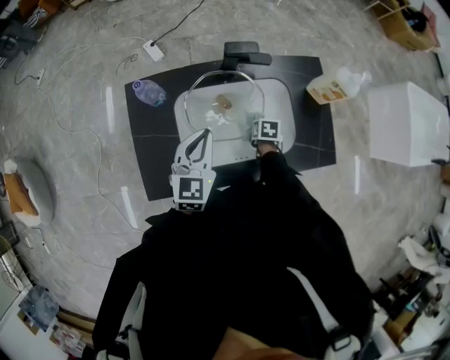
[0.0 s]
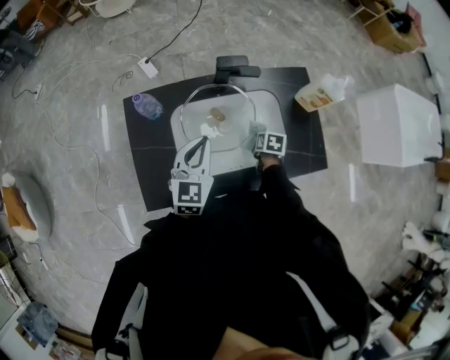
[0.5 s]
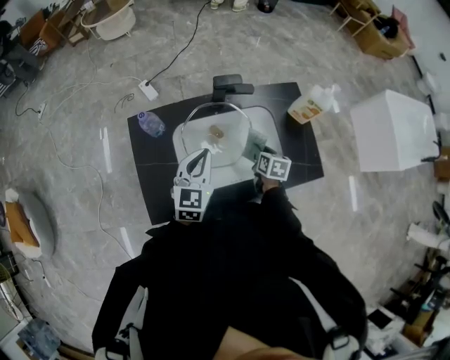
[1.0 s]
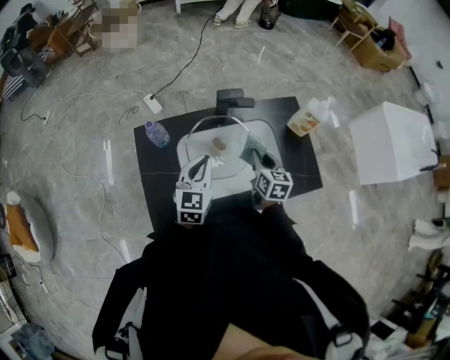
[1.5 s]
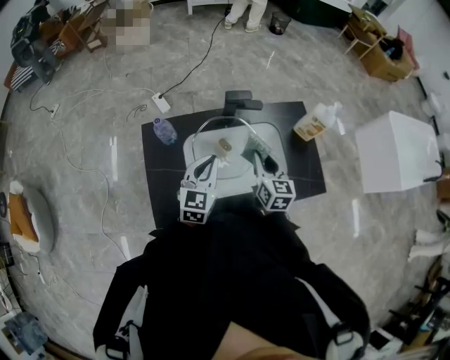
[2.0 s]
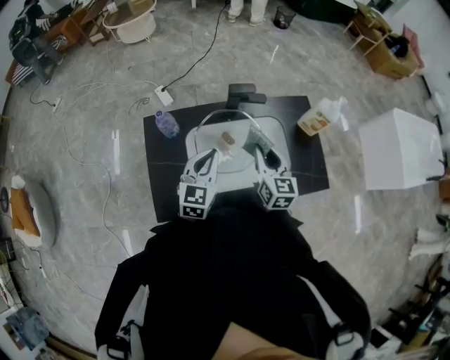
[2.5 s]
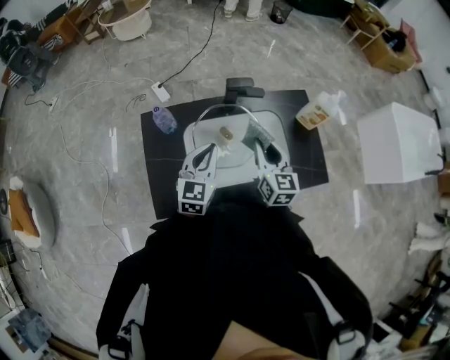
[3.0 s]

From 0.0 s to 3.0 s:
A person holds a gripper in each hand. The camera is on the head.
From 0.0 s to 1.5 s: The right gripper travels upward by about 20 cm, and tilts its fingers approximately 40 degrees upward.
From 1.5 s to 3.0 s: The right gripper moves upward, roughly 10 cm.

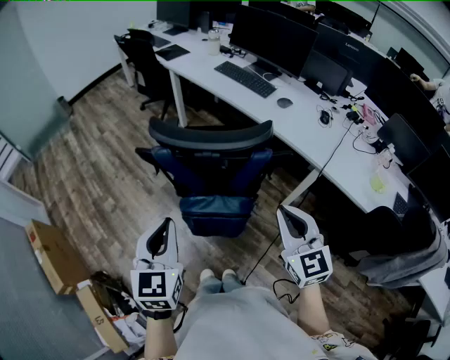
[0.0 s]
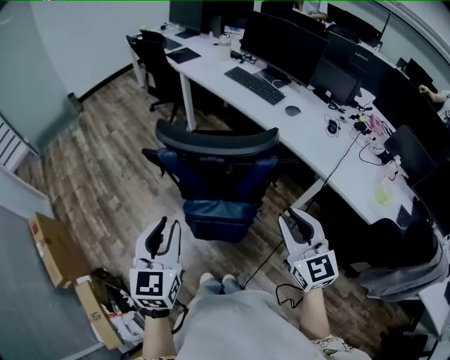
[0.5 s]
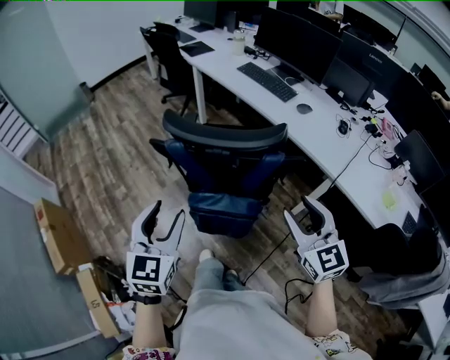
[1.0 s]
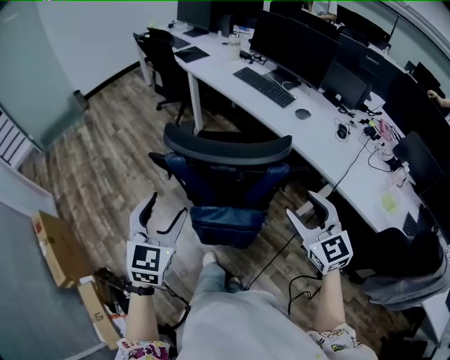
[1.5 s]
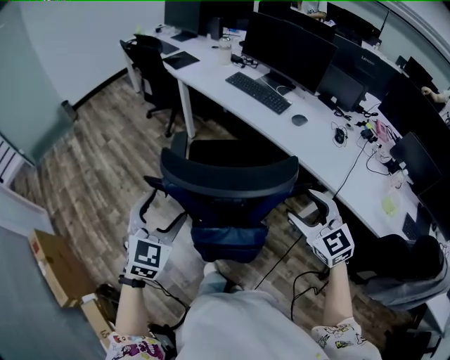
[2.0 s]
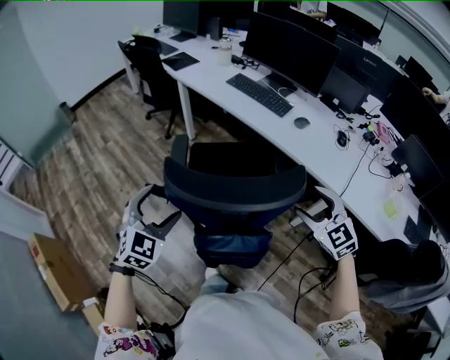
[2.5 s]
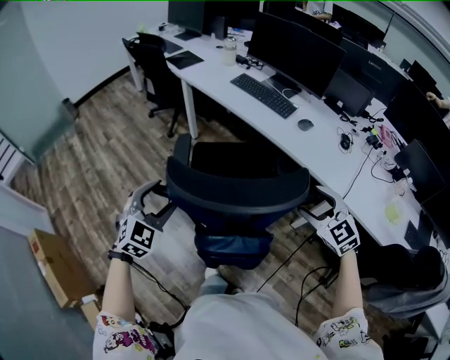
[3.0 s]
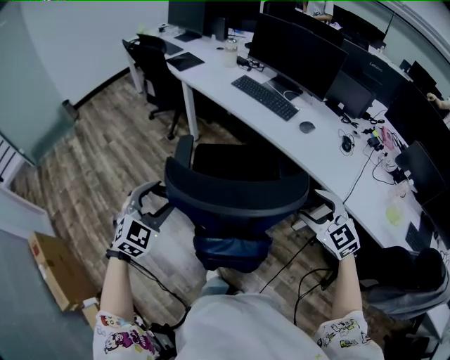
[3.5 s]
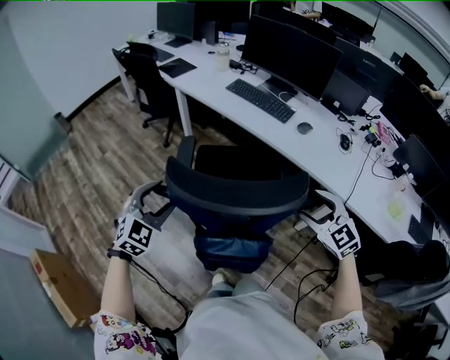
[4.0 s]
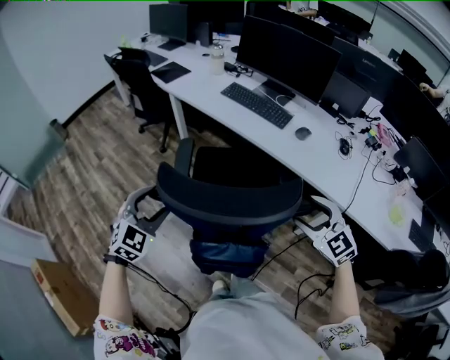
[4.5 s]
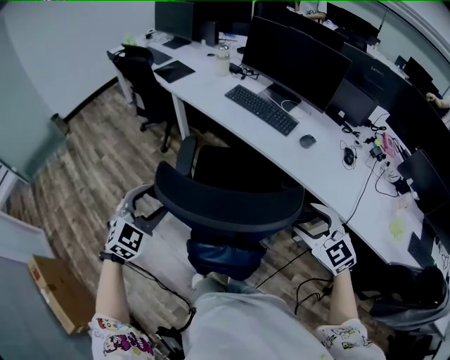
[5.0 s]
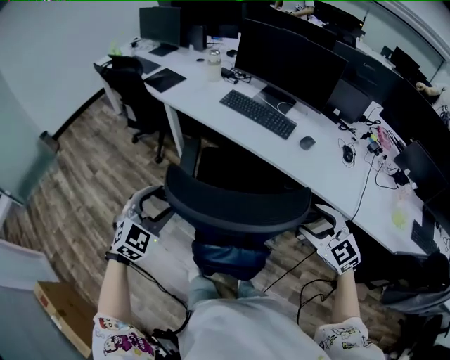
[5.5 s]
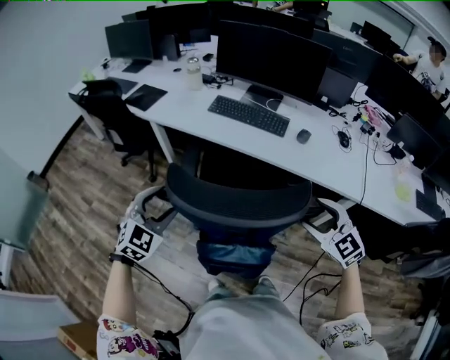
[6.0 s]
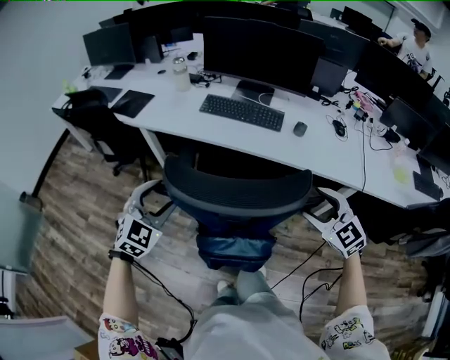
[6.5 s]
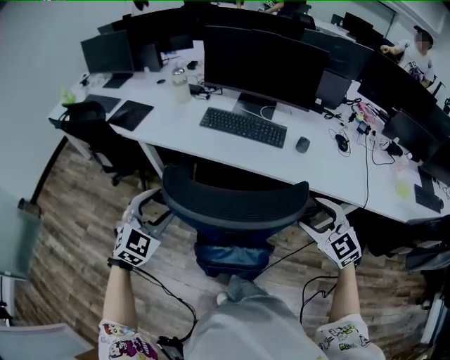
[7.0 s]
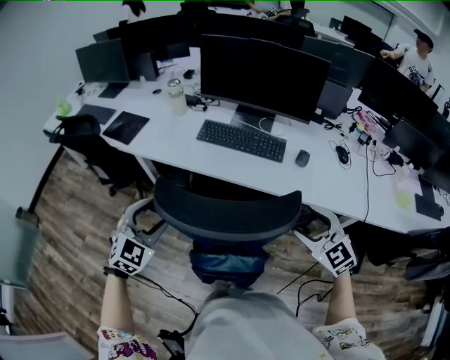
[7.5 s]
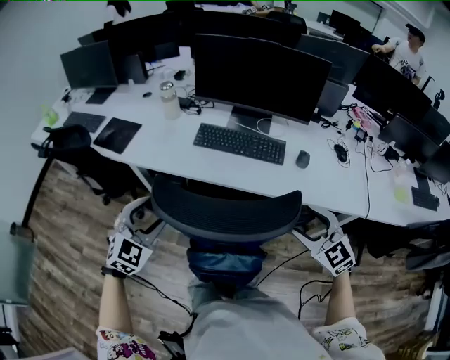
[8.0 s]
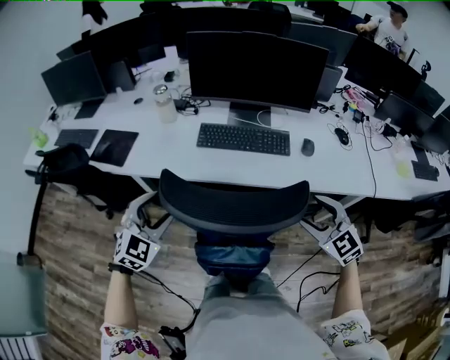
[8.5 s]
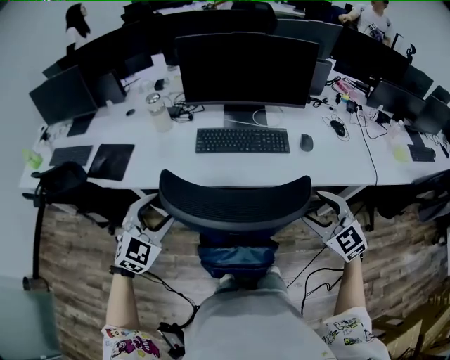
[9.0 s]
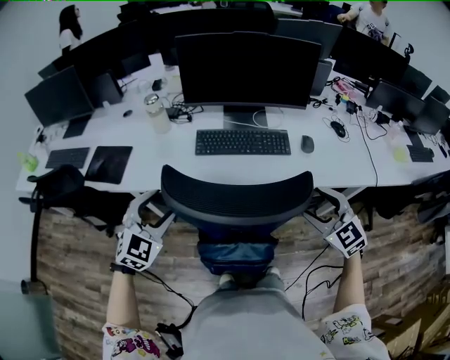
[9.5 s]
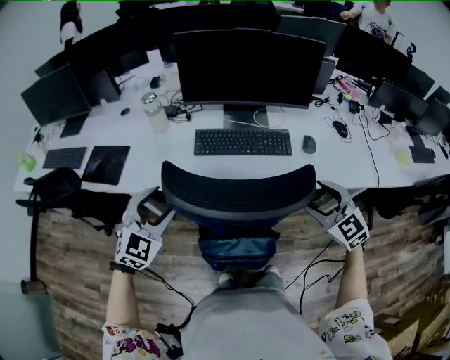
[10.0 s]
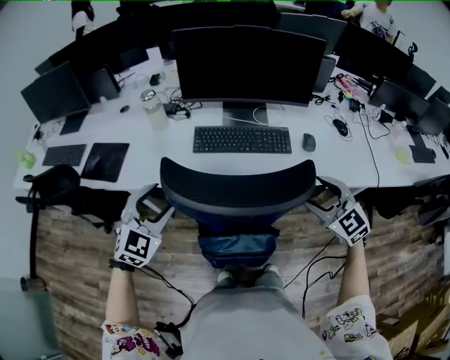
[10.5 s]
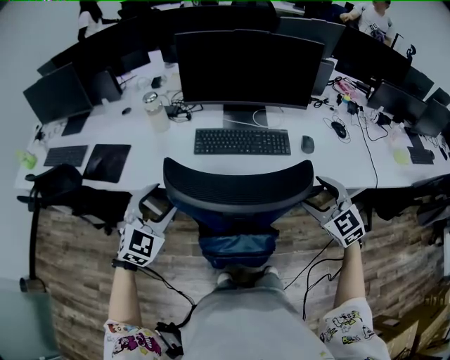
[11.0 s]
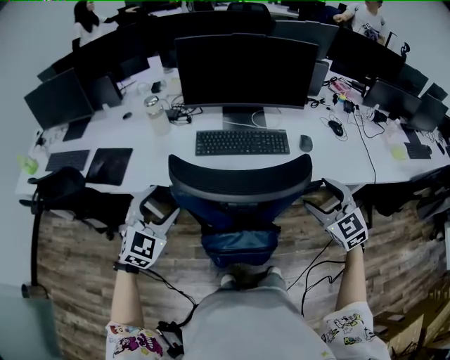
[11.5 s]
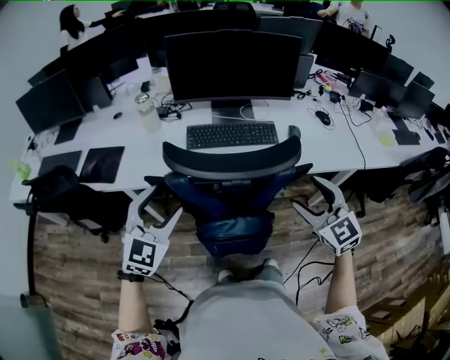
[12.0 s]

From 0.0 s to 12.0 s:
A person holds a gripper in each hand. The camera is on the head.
From 0.0 s to 2.0 s: Both grippers move forward, roughly 15 cm. The left gripper changes its angle by about 30 degrees, and opens its fingers, while the right gripper opens.
From 2.0 s to 4.0 s: The right gripper is displaced forward by approximately 5 cm; the left gripper shifts approximately 15 cm forward and to the left, and turns by about 20 degrees.
From 4.0 s to 6.0 s: The left gripper travels forward by roughly 20 cm. The right gripper goes roughly 10 cm forward and to the left.
From 6.0 s to 8.0 s: The left gripper shifts some 20 cm forward, while the right gripper travels forward and to the left by some 15 cm.
From 8.0 s to 10.0 s: The right gripper heads forward and to the left, covering some 10 cm. Meanwhile the left gripper travels forward by about 10 cm.
From 10.0 s to 12.0 s: The grippers both shift backward by approximately 5 cm.

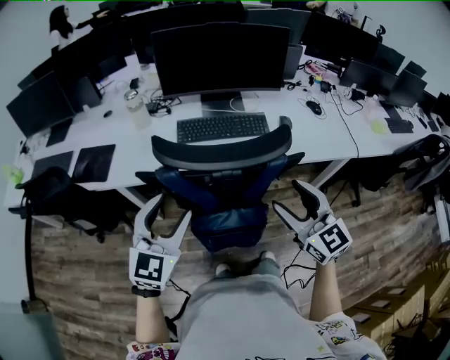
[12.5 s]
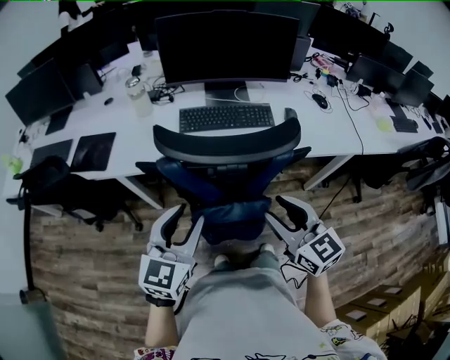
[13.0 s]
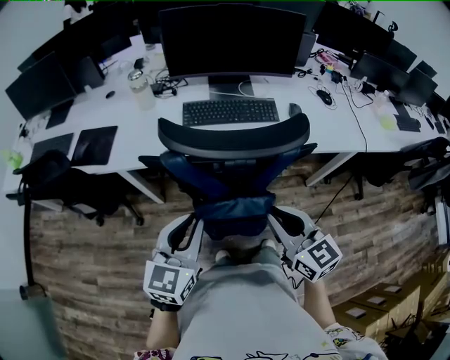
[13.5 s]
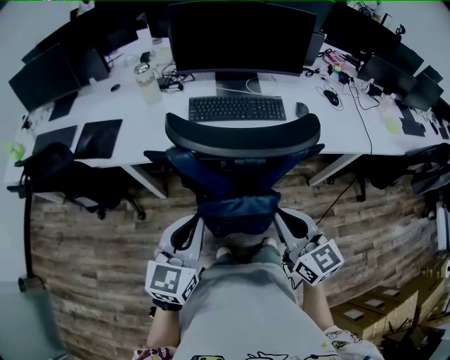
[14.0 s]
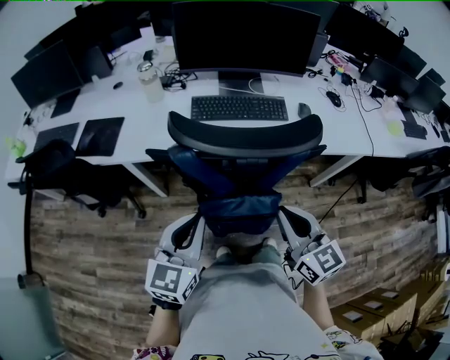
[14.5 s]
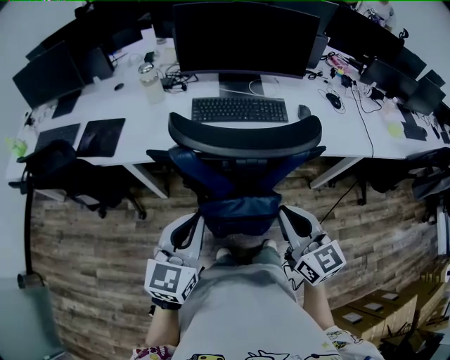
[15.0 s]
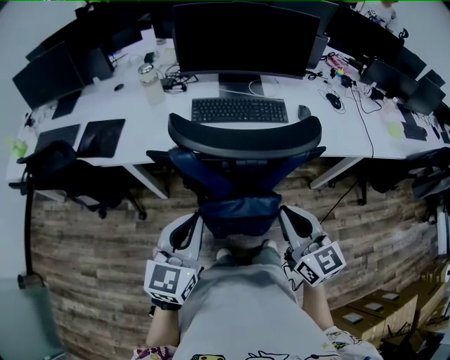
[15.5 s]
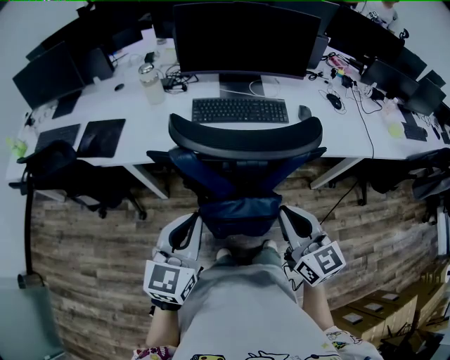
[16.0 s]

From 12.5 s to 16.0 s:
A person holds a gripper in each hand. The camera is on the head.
From 12.5 s to 14.5 s: The right gripper ends up about 10 cm from where it was, and closes; the left gripper shifts roughly 5 cm backward, turns by about 20 degrees, and closes its fingers.
From 14.5 s to 16.0 s: The two grippers keep their place.

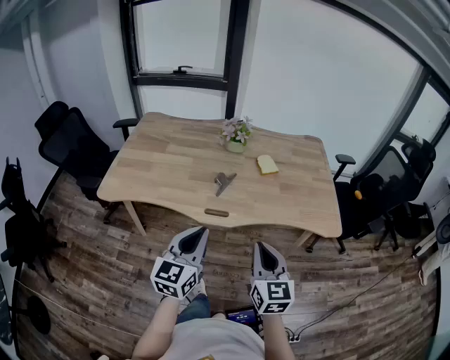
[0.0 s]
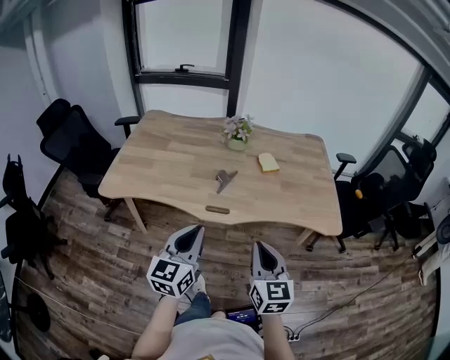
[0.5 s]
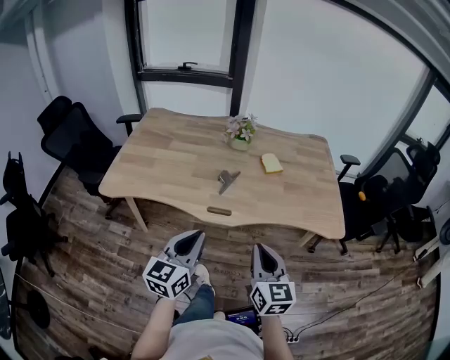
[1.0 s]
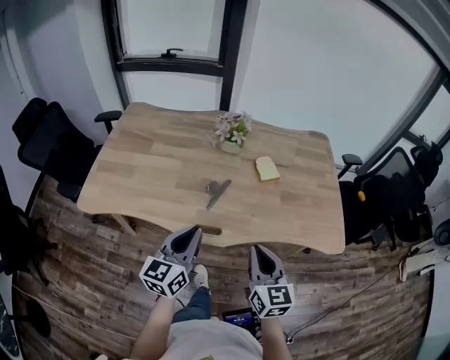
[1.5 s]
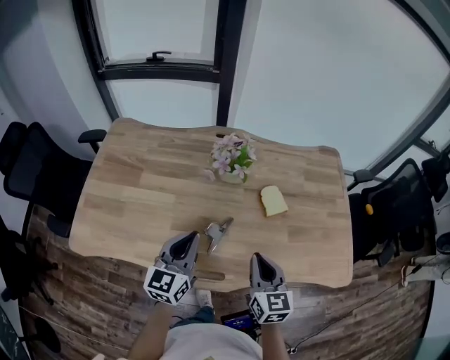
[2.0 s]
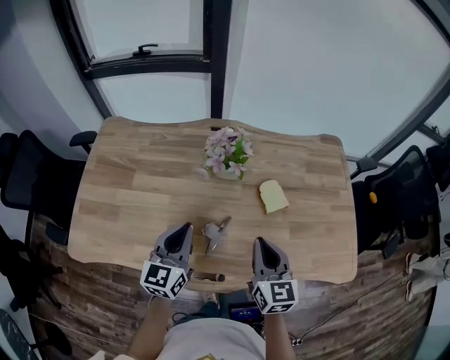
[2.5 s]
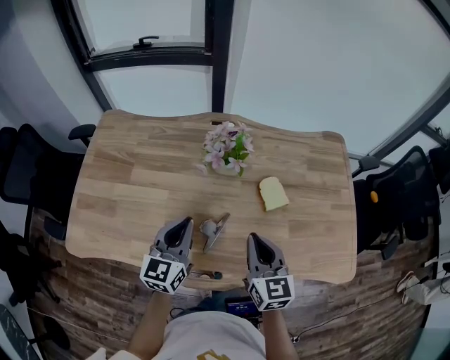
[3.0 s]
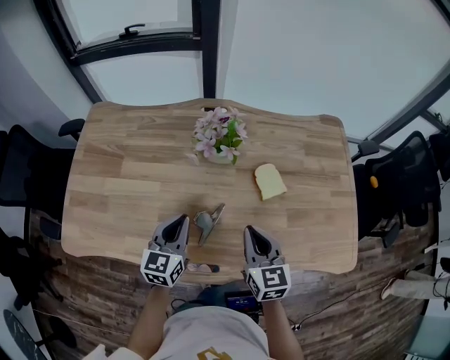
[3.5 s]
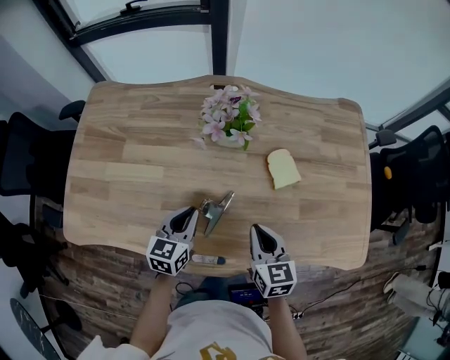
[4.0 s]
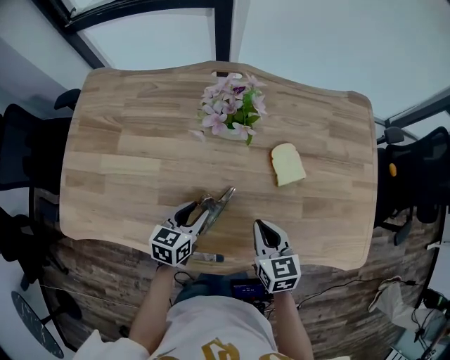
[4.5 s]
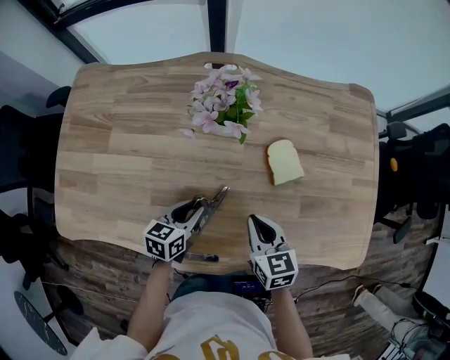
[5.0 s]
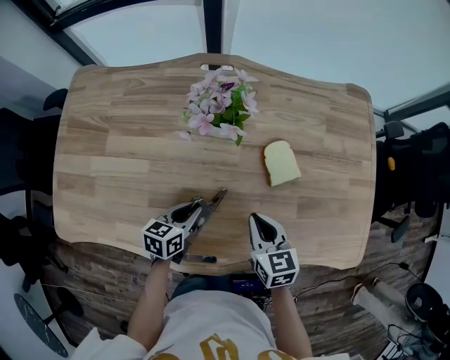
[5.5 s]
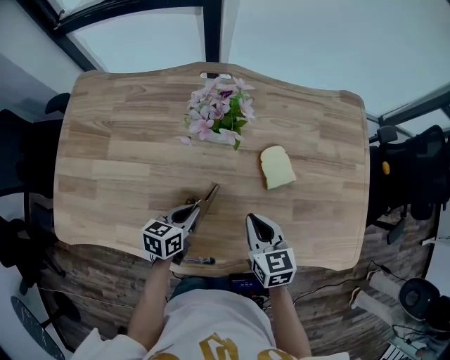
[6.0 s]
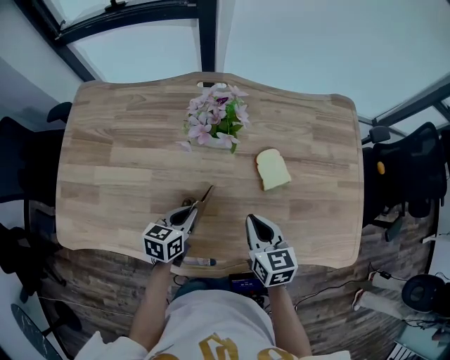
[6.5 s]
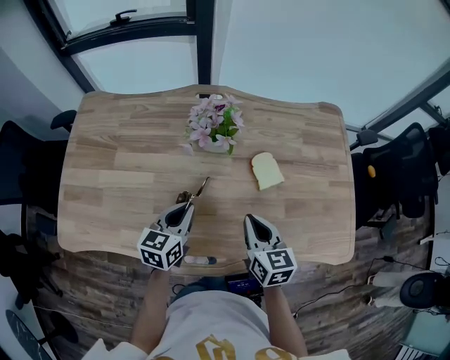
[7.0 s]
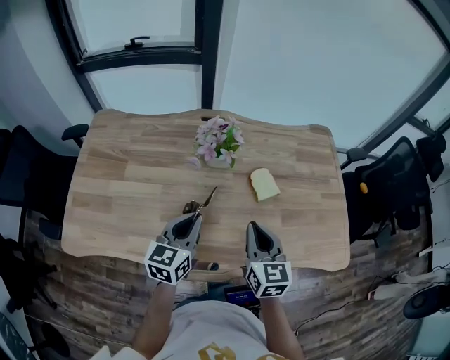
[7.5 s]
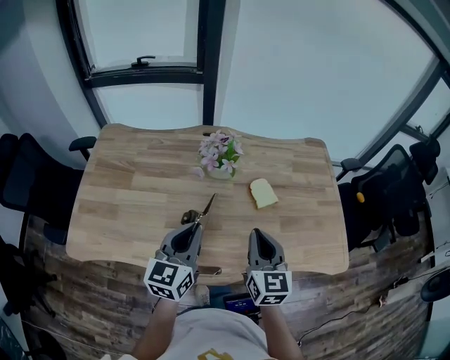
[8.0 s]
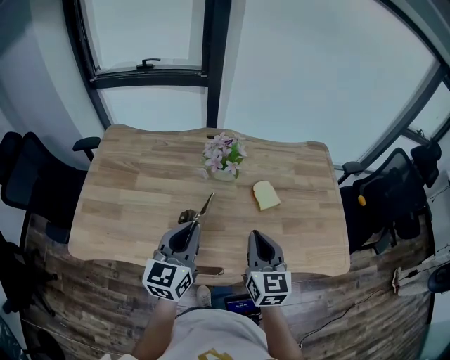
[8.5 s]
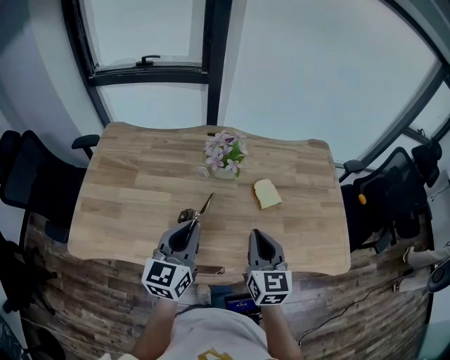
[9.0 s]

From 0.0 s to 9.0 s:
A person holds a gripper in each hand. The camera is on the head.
From 0.0 s to 2.0 s: The two grippers go some 35 cm forward.
From 2.0 s to 4.5 s: The right gripper goes about 15 cm downward and forward. The left gripper goes roughly 20 cm downward, turns by about 30 degrees, and opens up.
From 4.5 s to 7.0 s: Both grippers travel together upward, some 10 cm. The left gripper closes.
From 7.0 s to 9.0 s: The two grippers go some 15 cm upward and backward. The left gripper changes its angle by approximately 20 degrees, while the right gripper turns by roughly 20 degrees.
